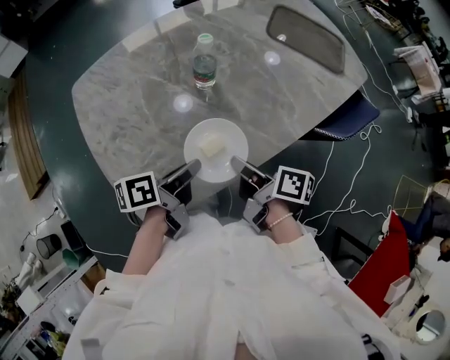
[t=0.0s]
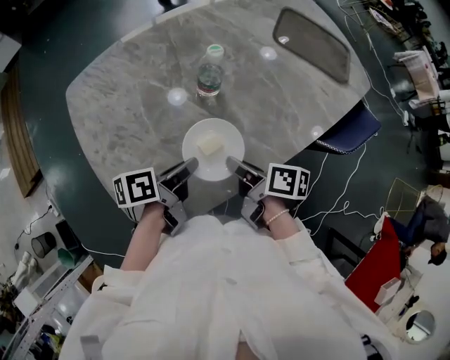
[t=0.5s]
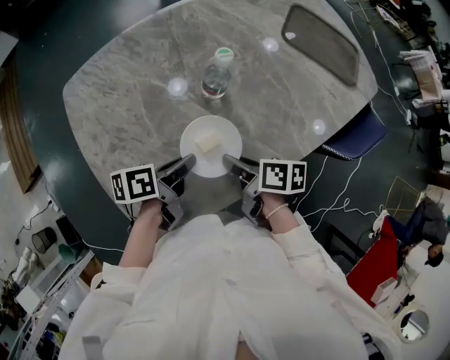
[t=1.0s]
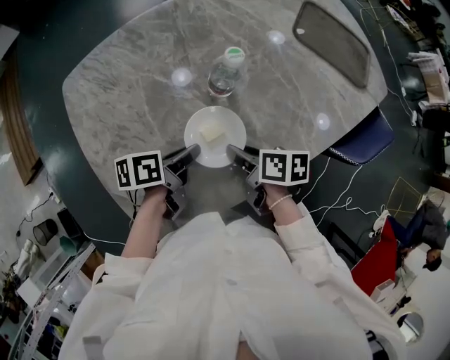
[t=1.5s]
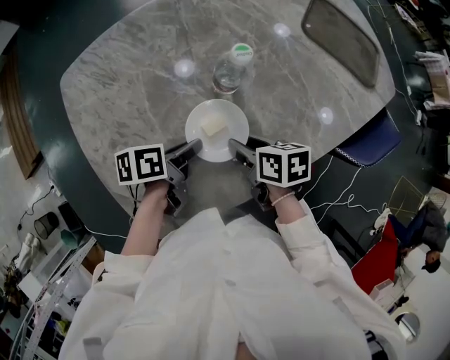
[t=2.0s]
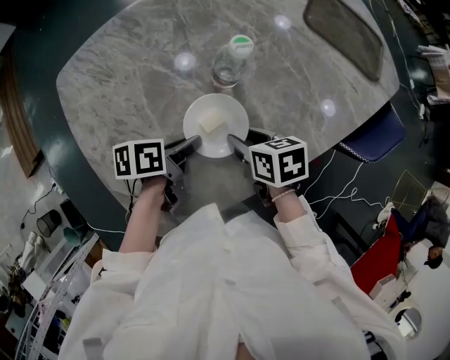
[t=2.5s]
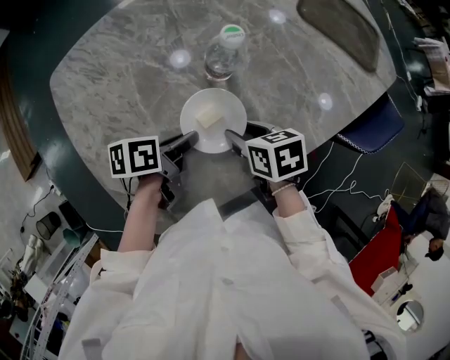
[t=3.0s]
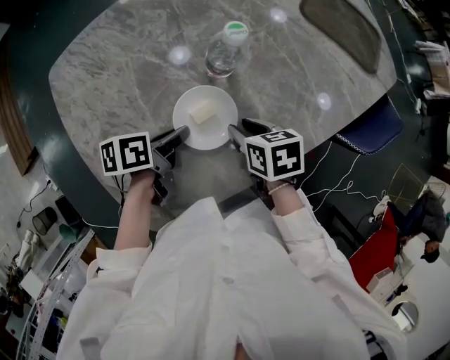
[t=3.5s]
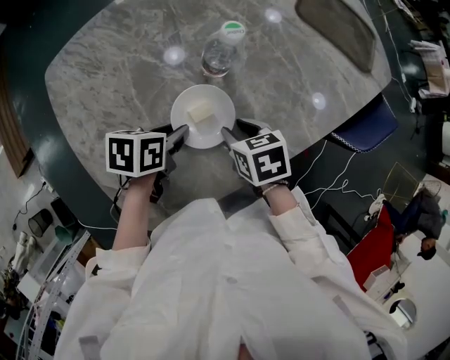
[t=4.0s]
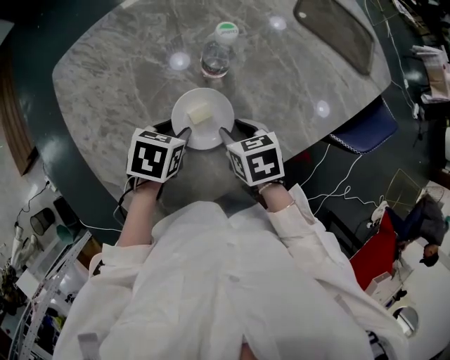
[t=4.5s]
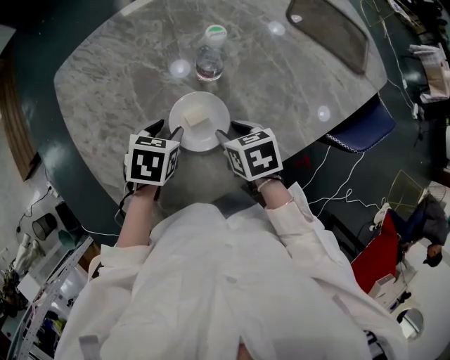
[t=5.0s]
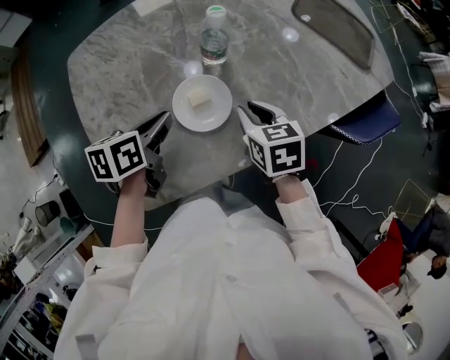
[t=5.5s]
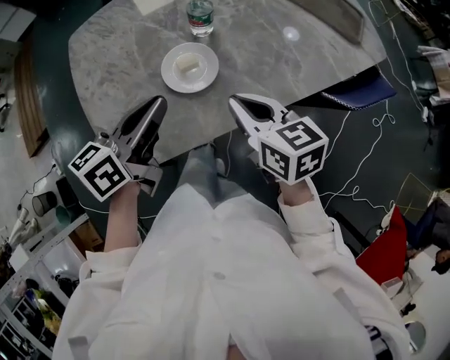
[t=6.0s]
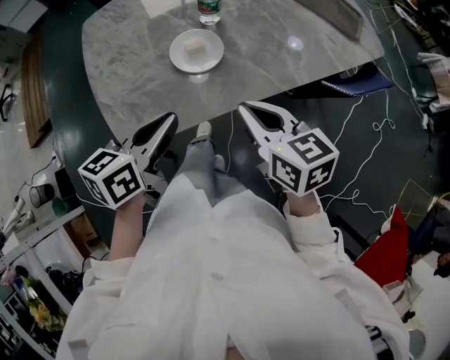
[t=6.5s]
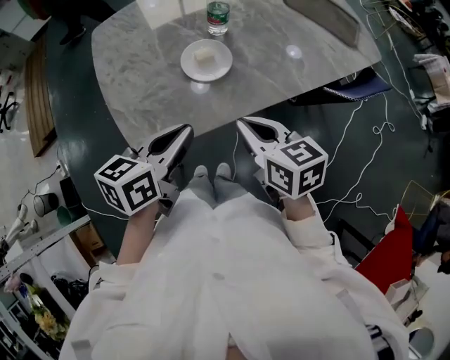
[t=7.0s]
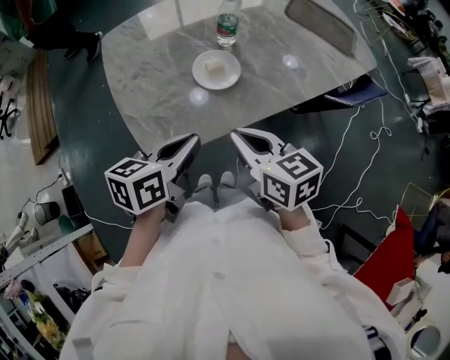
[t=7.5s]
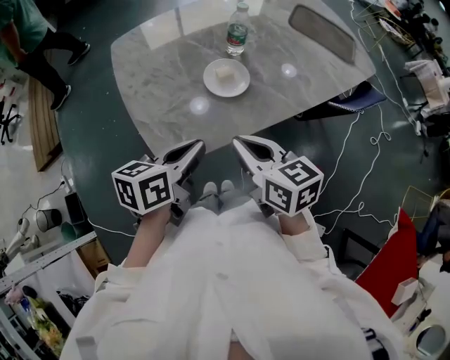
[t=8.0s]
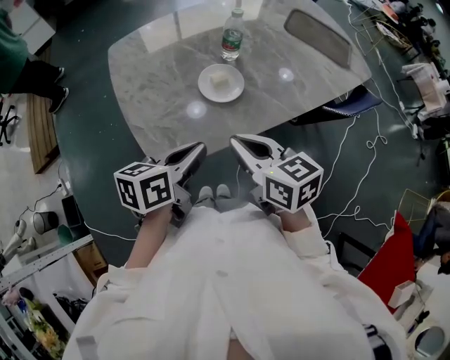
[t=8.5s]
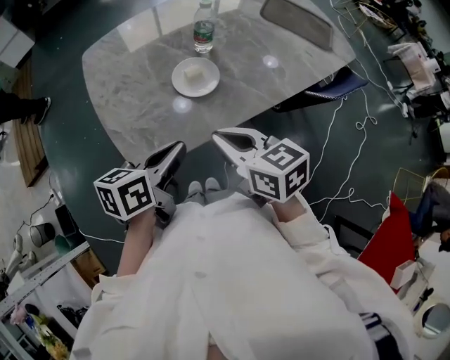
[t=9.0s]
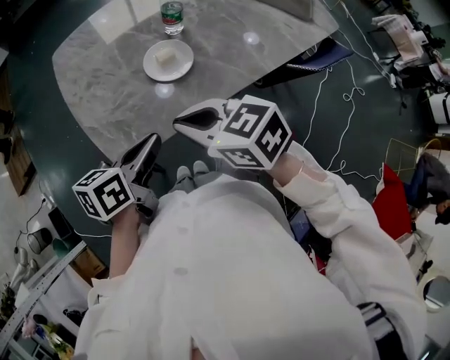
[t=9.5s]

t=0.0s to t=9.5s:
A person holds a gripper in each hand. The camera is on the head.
t=0.0s to t=2.0s: The left gripper is displaced forward and downward by about 15 cm; the right gripper travels forward, downward and to the left by some 15 cm, rotates approximately 40 degrees, and opens its fingers.
t=2.0s to t=4.0s: The left gripper changes its angle by approximately 30 degrees. Meanwhile the right gripper rotates some 20 degrees.
t=4.0s to t=5.5s: Both grippers move upward, some 5 cm. The left gripper swivels roughly 20 degrees, and opens, then closes once more.
t=5.5s to t=7.5s: Both grippers move backward and upward, approximately 25 cm. The right gripper swivels some 20 degrees, and closes its fingers.
t=7.5s to t=9.5s: The right gripper rotates some 20 degrees.

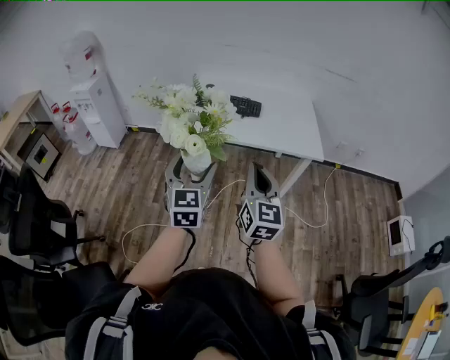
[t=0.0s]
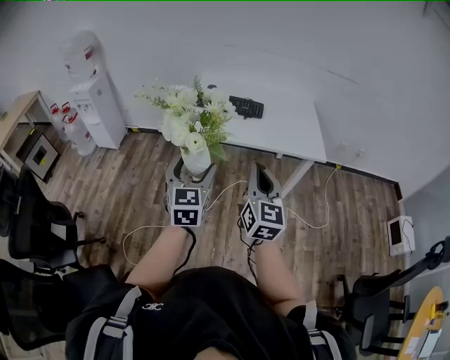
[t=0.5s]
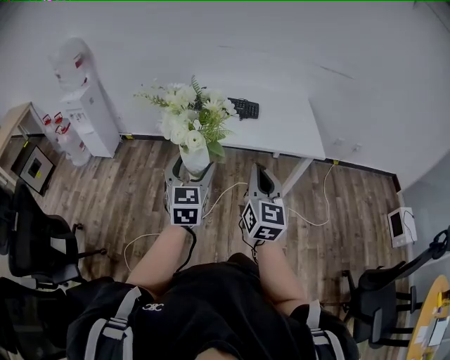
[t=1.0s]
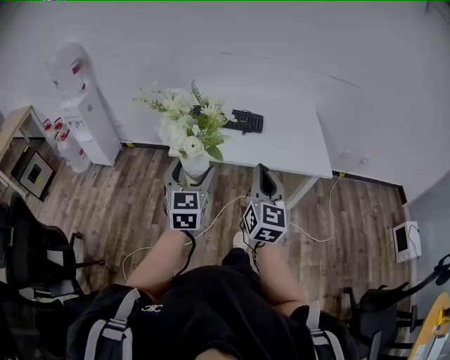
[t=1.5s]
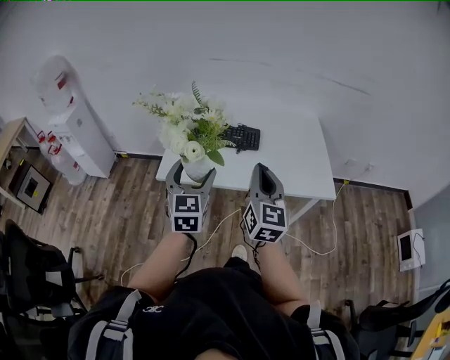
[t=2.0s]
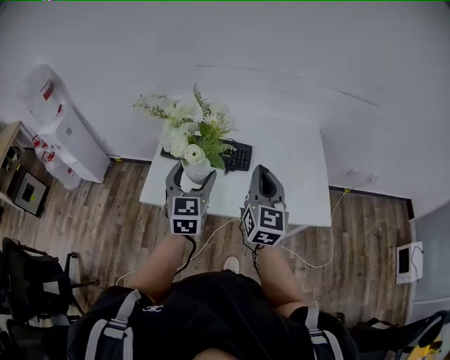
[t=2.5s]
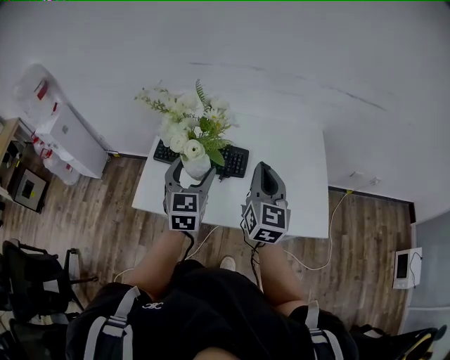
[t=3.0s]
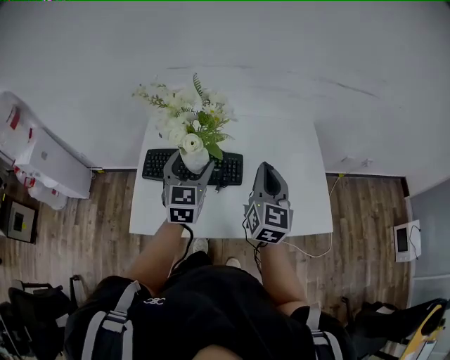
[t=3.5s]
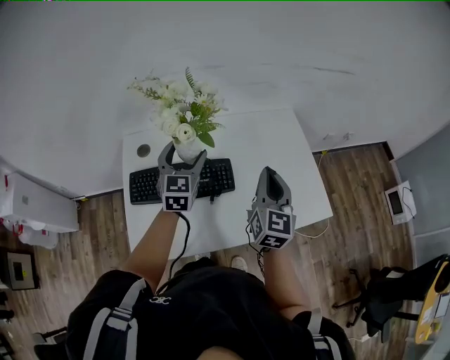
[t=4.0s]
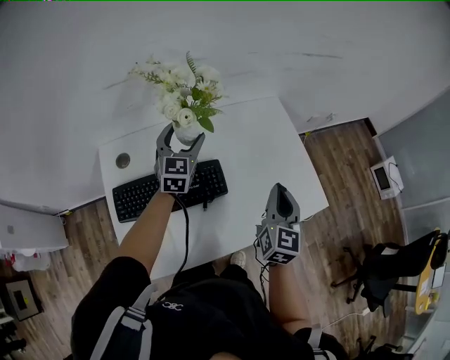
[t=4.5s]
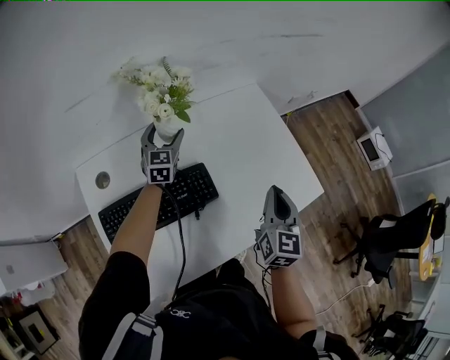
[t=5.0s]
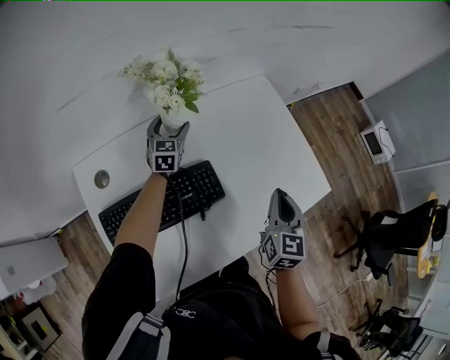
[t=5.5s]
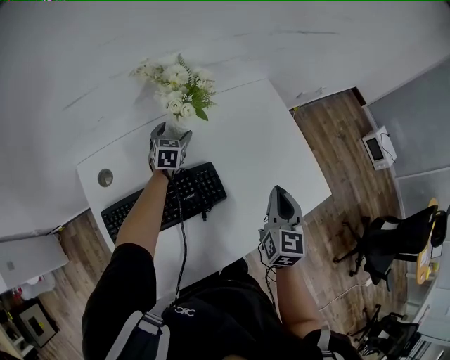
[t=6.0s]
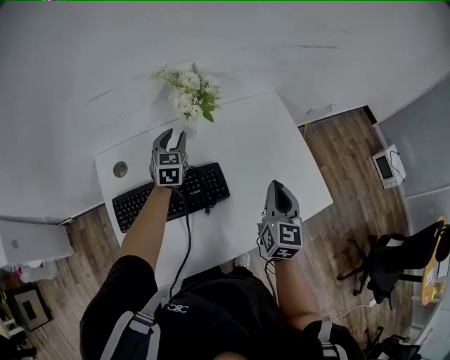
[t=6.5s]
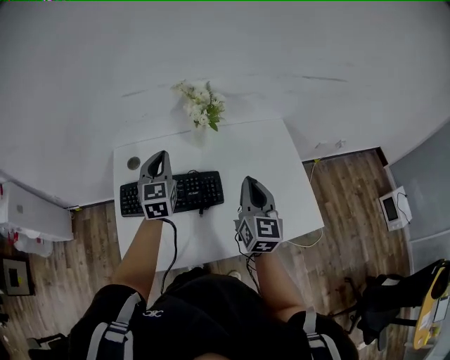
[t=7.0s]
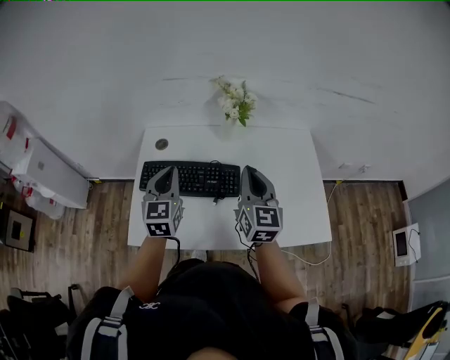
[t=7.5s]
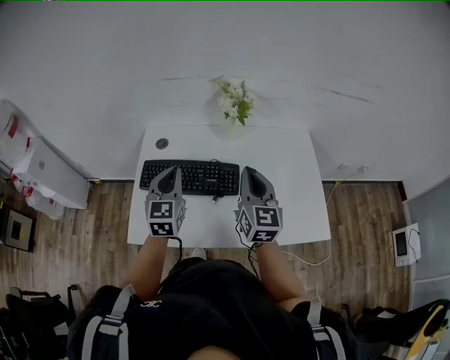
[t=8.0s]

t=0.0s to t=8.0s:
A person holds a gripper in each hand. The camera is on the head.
t=0.0s to t=2.0s: Both grippers travel together forward, about 30 cm.
t=2.0s to t=4.0s: Both grippers move forward, some 40 cm. The left gripper swivels some 20 degrees, while the right gripper turns by approximately 20 degrees.
t=4.0s to t=6.0s: The right gripper is displaced downward by roughly 10 cm, and turns by about 20 degrees. The left gripper goes some 35 cm downward and forward, and rotates about 30 degrees.
t=6.0s to t=8.0s: The left gripper shifts by some 50 cm, rotates about 40 degrees, and closes; the right gripper moves upward, approximately 10 cm, and changes its angle by some 40 degrees.

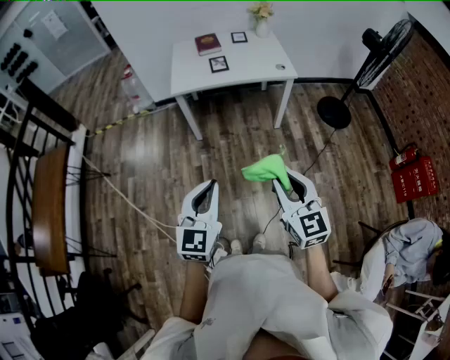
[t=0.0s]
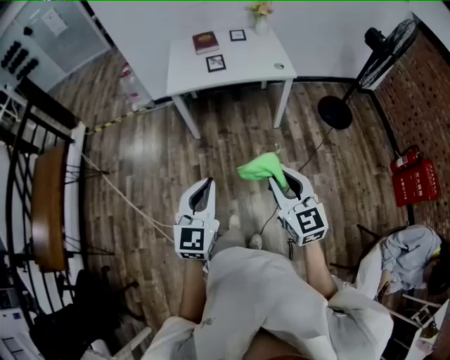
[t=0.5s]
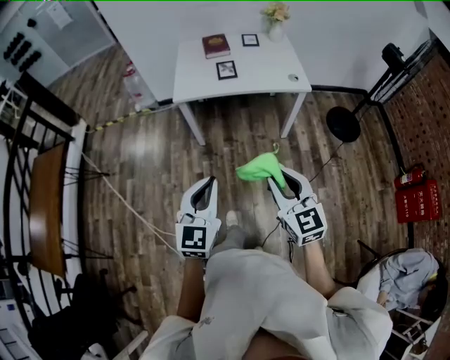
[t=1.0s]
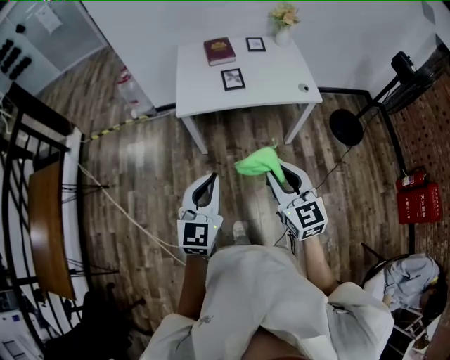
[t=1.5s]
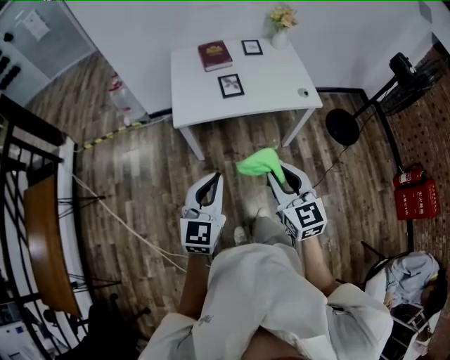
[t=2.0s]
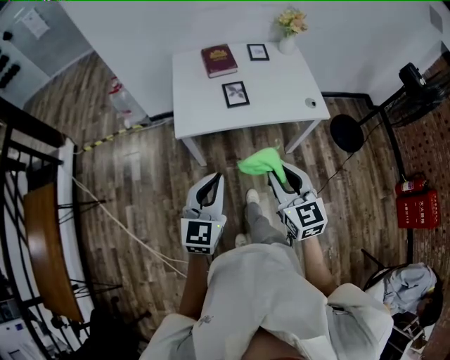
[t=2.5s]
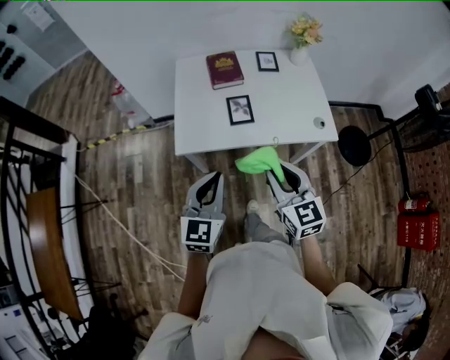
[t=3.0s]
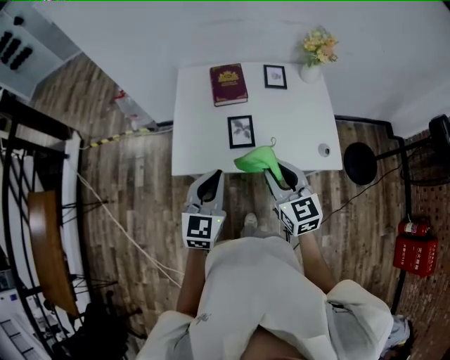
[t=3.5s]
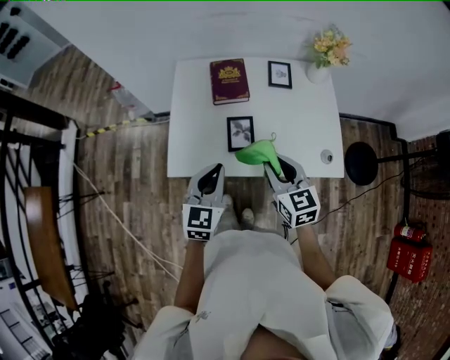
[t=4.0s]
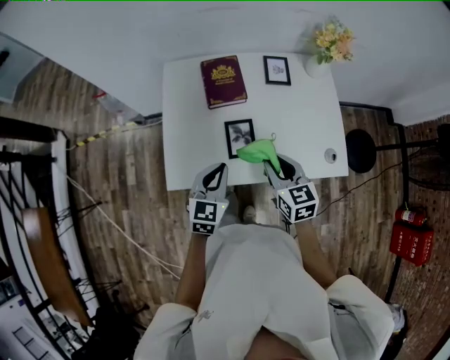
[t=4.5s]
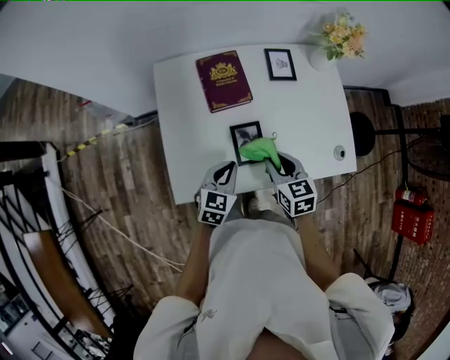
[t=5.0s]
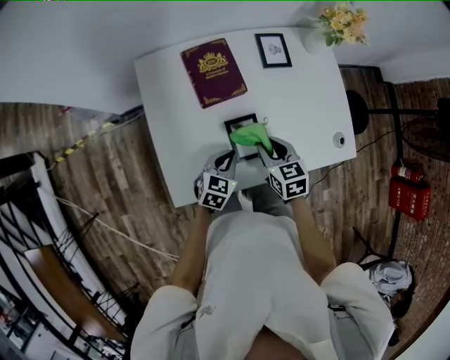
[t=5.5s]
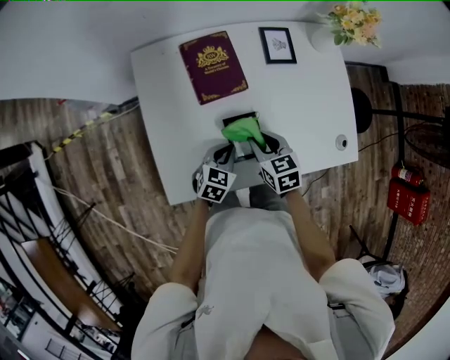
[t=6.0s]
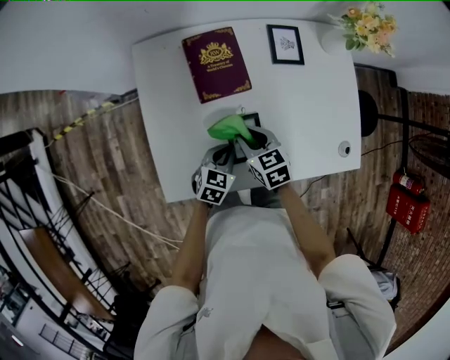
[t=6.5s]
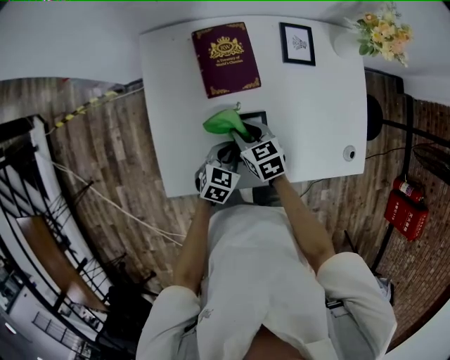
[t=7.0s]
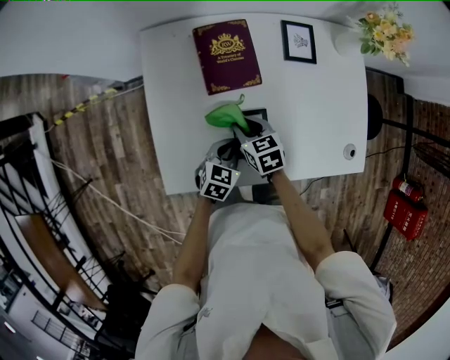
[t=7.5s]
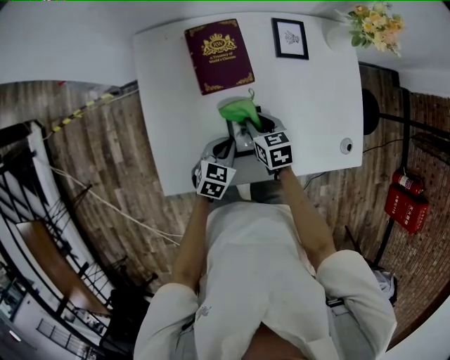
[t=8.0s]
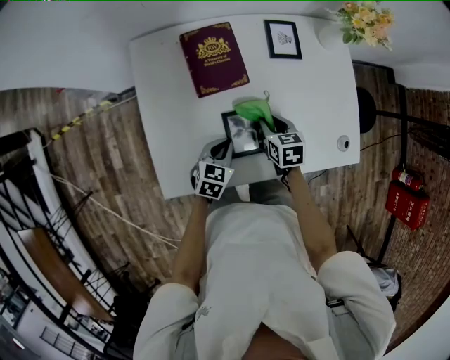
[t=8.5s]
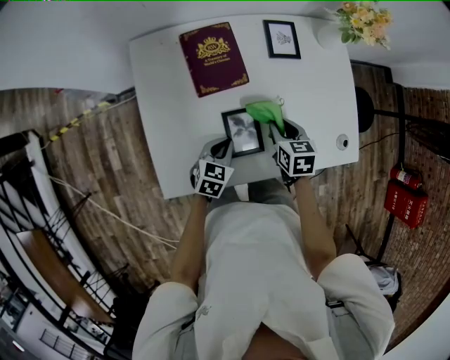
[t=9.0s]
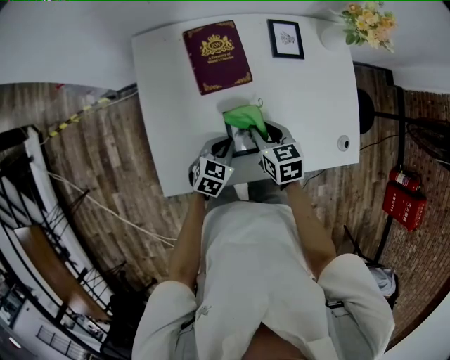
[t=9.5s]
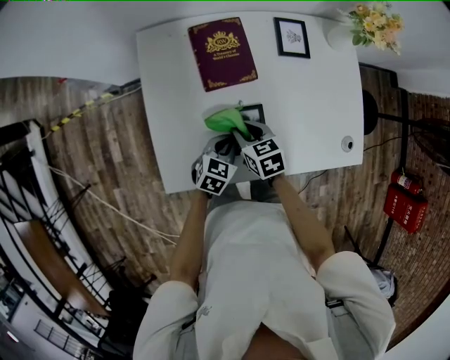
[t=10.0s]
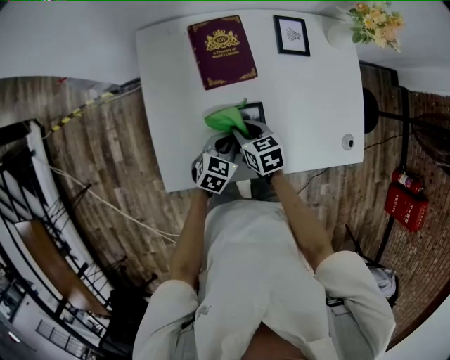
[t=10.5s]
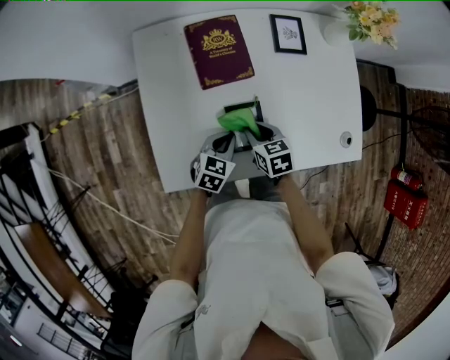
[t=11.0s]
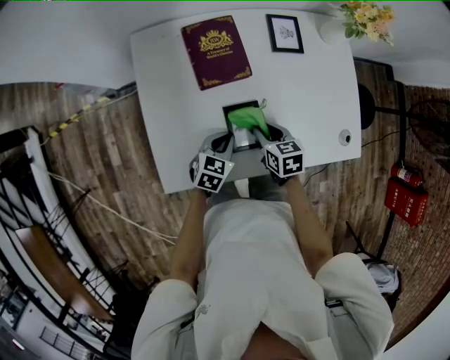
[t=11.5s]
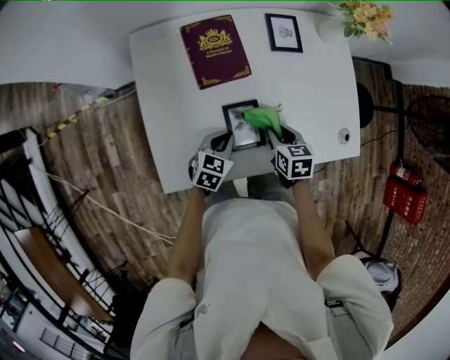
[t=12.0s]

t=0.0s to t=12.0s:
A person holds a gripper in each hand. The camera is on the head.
t=0.0s to t=2.0s: The two grippers go approximately 30 cm forward.
t=2.0s to t=4.0s: The grippers both shift forward by some 40 cm.
t=4.0s to t=6.0s: Both grippers move downward and forward, about 25 cm. The left gripper swivels approximately 30 degrees; the right gripper swivels roughly 30 degrees.
t=6.0s to t=8.0s: The right gripper shifts some 5 cm downward.
t=8.0s to t=10.0s: The right gripper ends up about 5 cm from where it was.
t=10.0s to t=12.0s: The right gripper heads to the right, covering some 15 cm.
